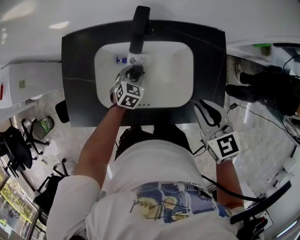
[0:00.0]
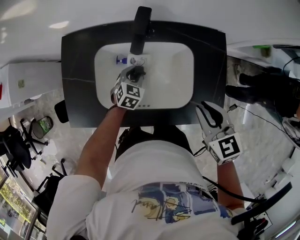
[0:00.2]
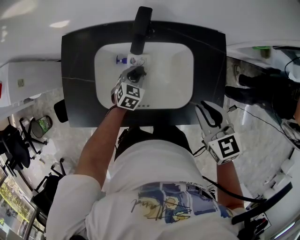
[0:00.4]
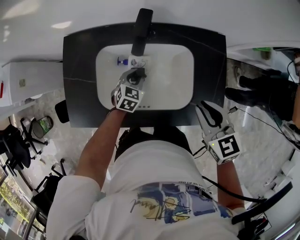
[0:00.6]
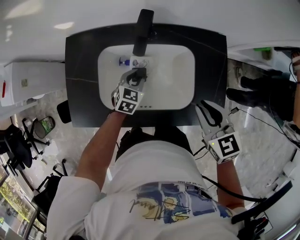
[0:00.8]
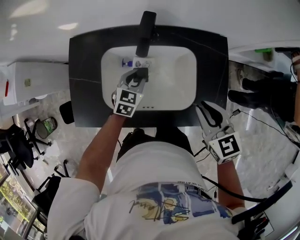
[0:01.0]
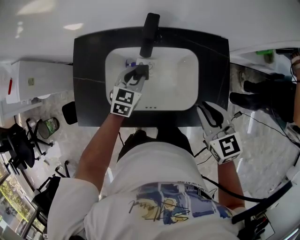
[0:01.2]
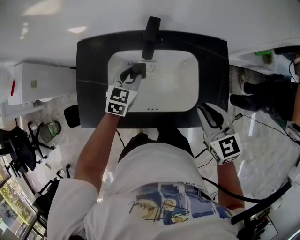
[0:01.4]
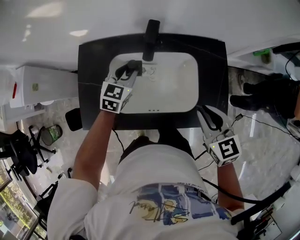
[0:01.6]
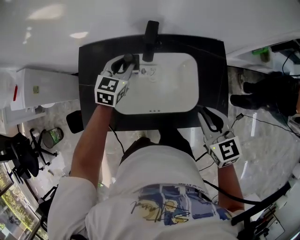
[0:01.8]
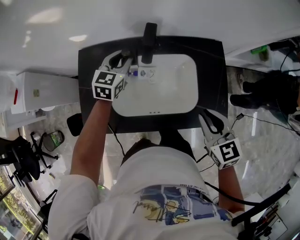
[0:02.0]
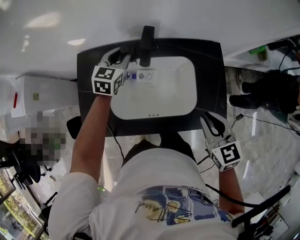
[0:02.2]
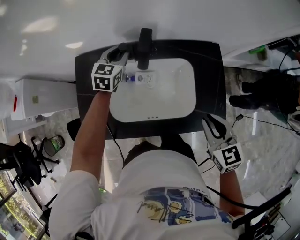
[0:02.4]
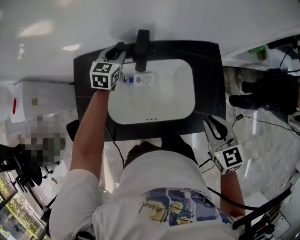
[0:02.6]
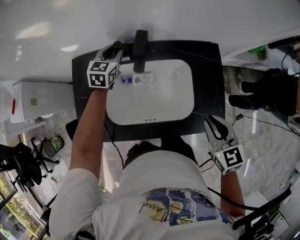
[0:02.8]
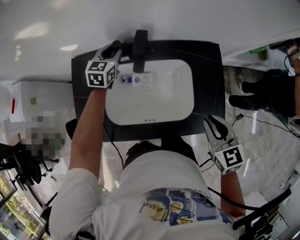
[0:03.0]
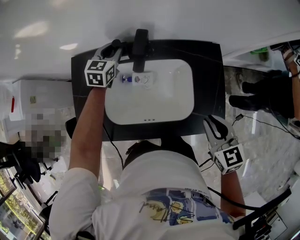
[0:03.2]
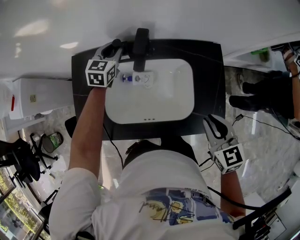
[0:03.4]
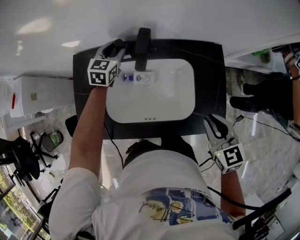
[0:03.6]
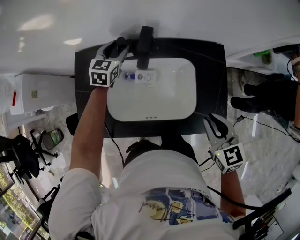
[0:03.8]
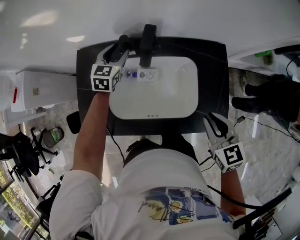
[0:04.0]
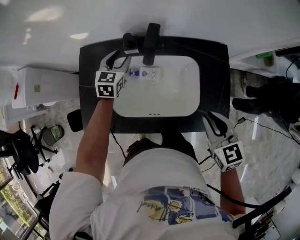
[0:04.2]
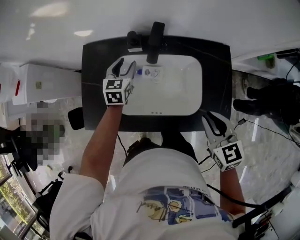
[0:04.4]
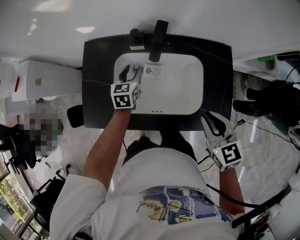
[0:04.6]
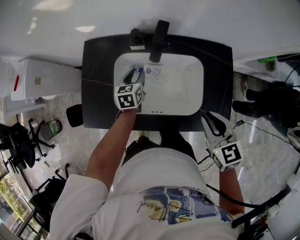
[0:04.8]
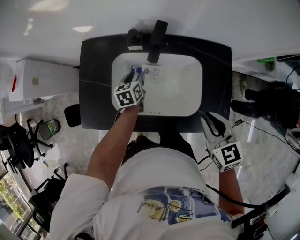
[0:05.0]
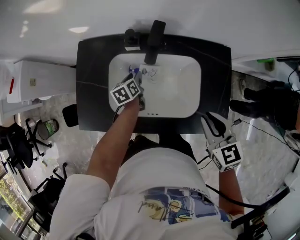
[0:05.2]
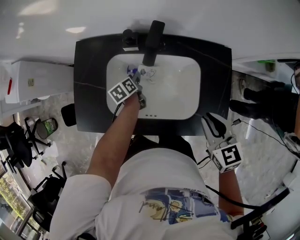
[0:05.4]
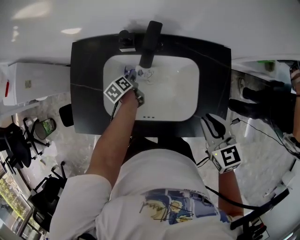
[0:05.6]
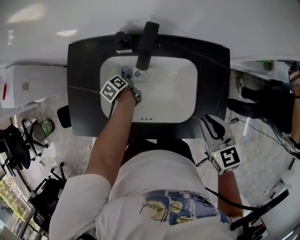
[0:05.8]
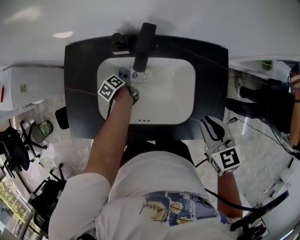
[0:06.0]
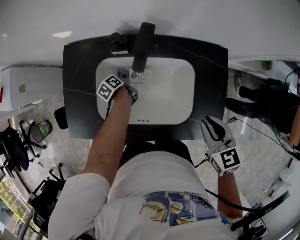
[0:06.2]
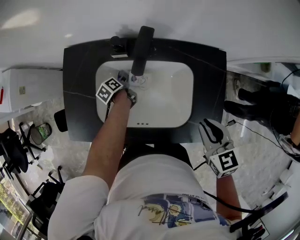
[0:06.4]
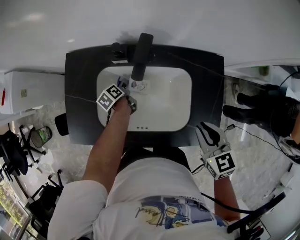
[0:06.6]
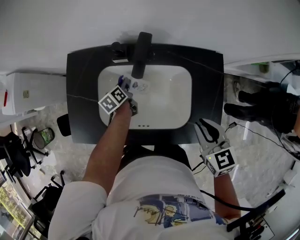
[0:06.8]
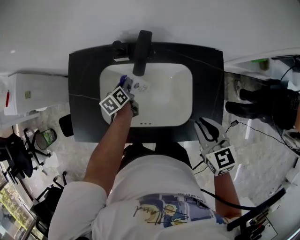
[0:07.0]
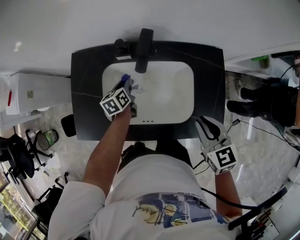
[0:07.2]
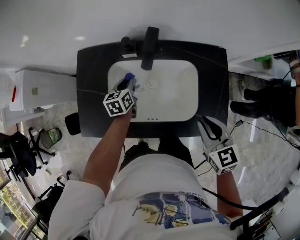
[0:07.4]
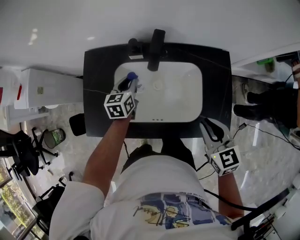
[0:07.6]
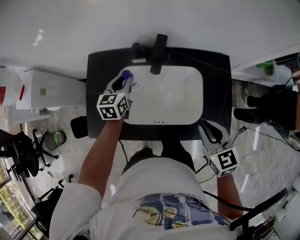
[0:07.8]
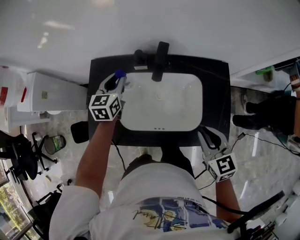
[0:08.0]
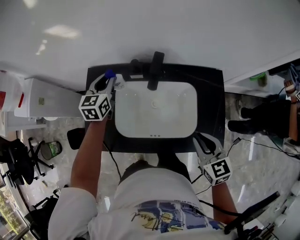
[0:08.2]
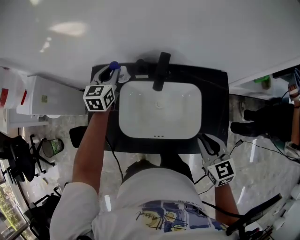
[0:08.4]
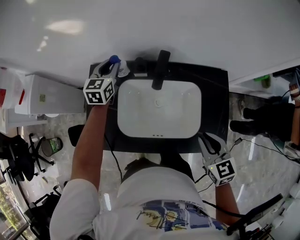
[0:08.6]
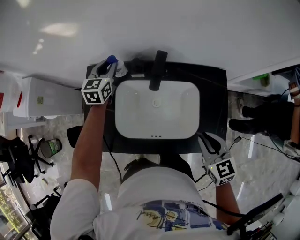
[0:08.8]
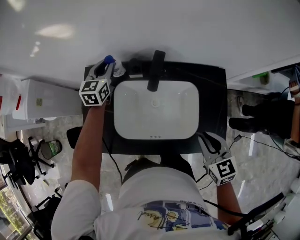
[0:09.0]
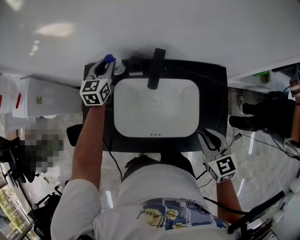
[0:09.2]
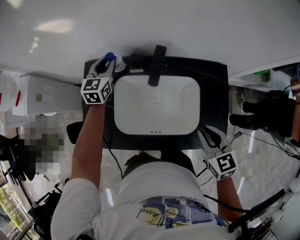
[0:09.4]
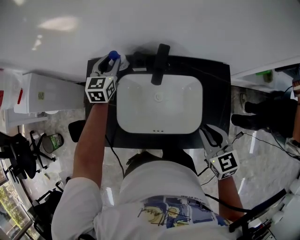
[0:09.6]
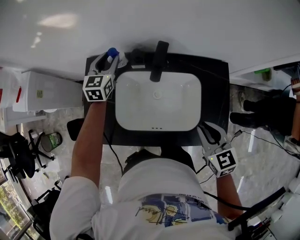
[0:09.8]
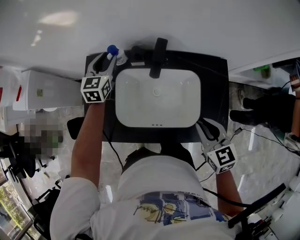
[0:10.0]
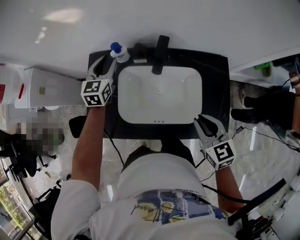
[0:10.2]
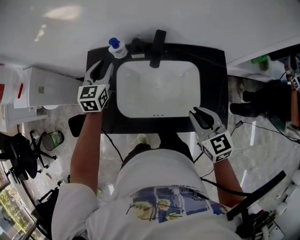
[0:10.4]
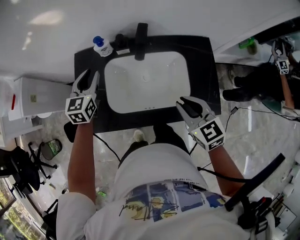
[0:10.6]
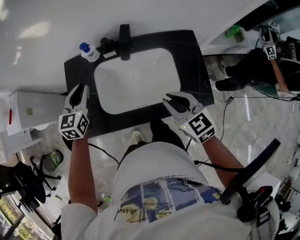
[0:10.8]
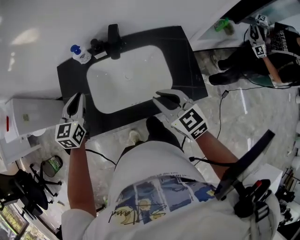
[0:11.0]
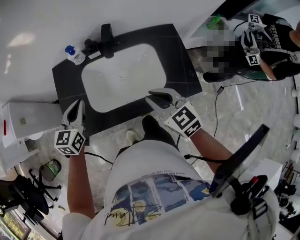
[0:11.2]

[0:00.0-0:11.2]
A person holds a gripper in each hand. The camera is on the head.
0:00.0 to 0:01.6: The left gripper goes some 15 cm upward.
0:01.6 to 0:03.2: The right gripper shifts about 5 cm to the right; the left gripper travels forward by about 15 cm.
0:03.2 to 0:04.8: The left gripper is displaced backward and downward by about 15 cm, changes its angle by approximately 30 degrees, and opens.
0:04.8 to 0:06.4: The right gripper heads to the right, covering approximately 5 cm. Meanwhile the left gripper moves downward, about 15 cm, and twists roughly 50 degrees counterclockwise, seen from behind.
0:06.4 to 0:08.0: The left gripper shifts approximately 25 cm upward, and rotates around the line of its fingers by approximately 60 degrees, clockwise from behind, while the right gripper travels to the left by roughly 5 cm.
0:08.0 to 0:09.6: The left gripper moves forward, roughly 10 cm.
0:09.6 to 0:11.2: The right gripper heads to the left and backward, covering approximately 10 cm, while the left gripper travels backward by roughly 25 cm, and closes up.

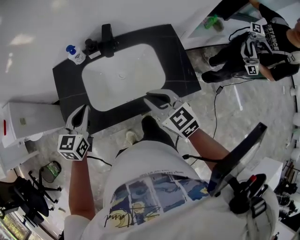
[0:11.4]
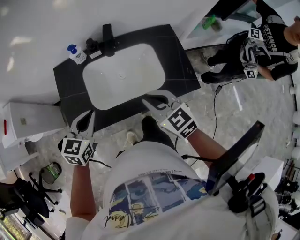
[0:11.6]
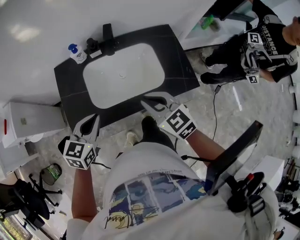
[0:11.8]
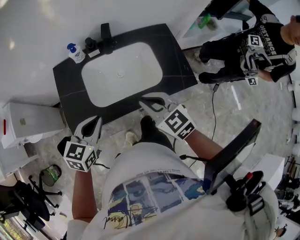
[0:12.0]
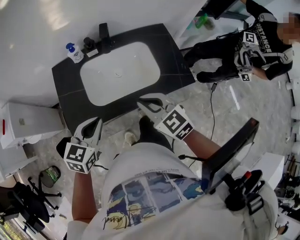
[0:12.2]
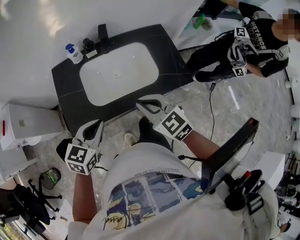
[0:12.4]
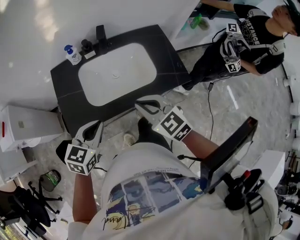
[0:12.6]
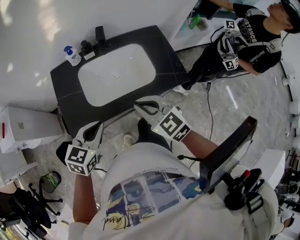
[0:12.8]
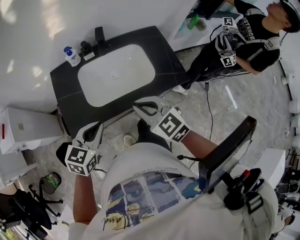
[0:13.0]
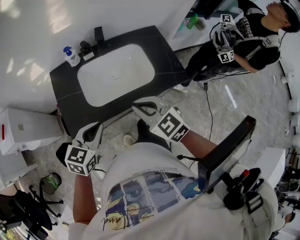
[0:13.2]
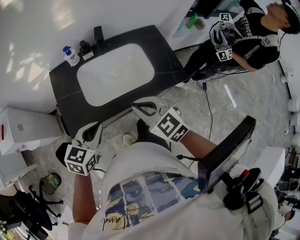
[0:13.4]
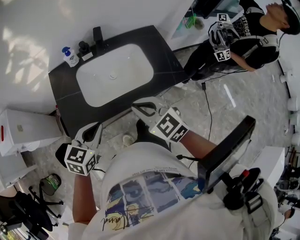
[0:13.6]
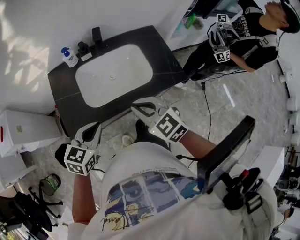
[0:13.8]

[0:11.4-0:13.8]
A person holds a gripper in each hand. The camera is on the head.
0:11.4 to 0:12.6: The right gripper travels backward by about 5 cm. Meanwhile the left gripper heads backward, covering approximately 10 cm.
0:12.6 to 0:13.8: The grippers stay close to where they were, moving slightly.

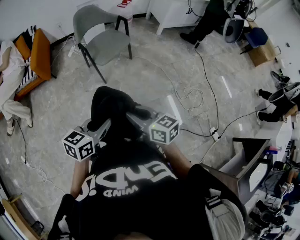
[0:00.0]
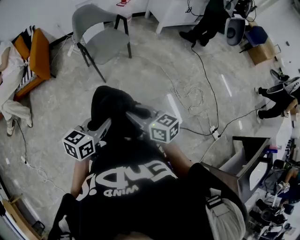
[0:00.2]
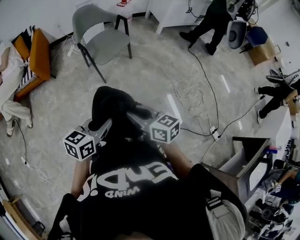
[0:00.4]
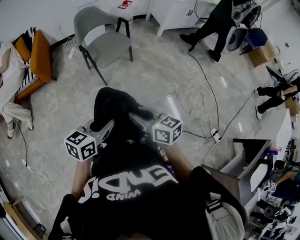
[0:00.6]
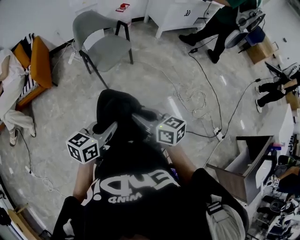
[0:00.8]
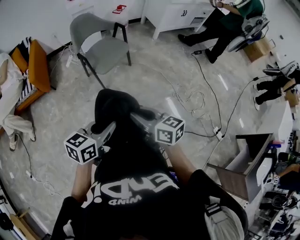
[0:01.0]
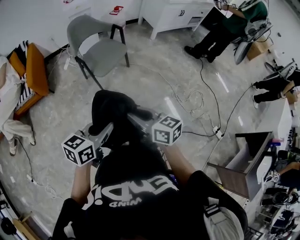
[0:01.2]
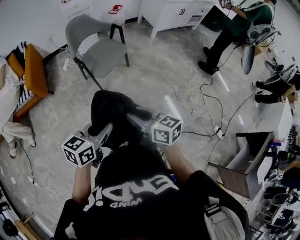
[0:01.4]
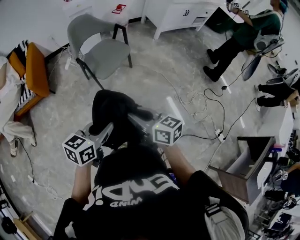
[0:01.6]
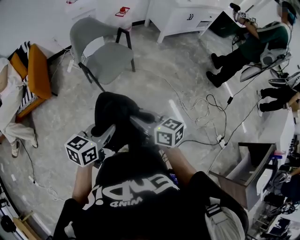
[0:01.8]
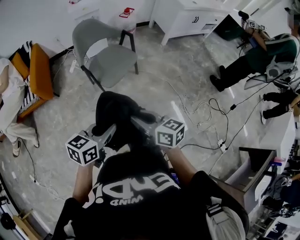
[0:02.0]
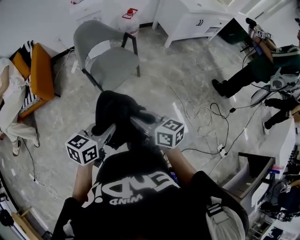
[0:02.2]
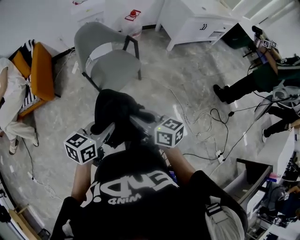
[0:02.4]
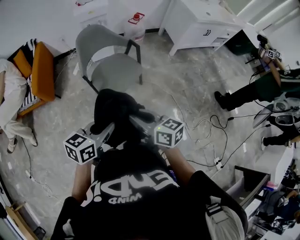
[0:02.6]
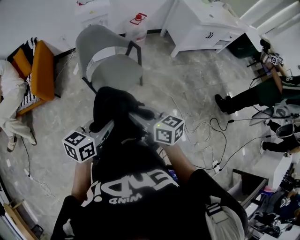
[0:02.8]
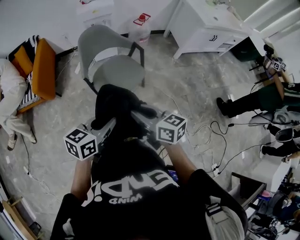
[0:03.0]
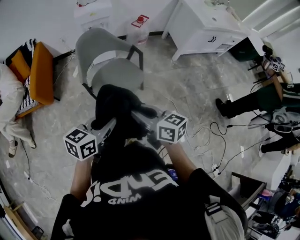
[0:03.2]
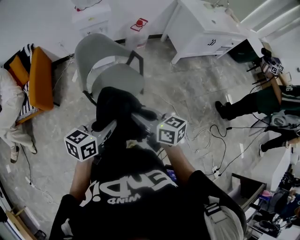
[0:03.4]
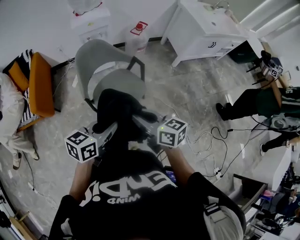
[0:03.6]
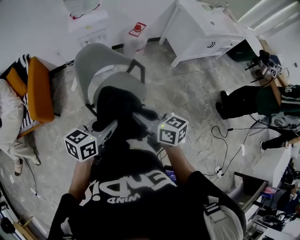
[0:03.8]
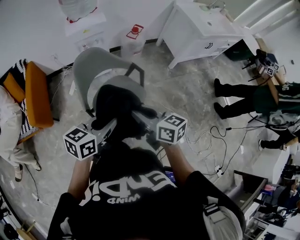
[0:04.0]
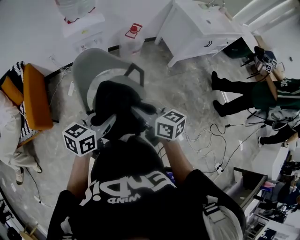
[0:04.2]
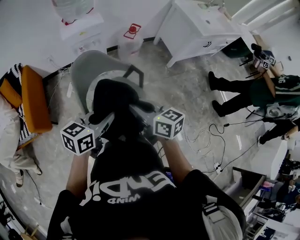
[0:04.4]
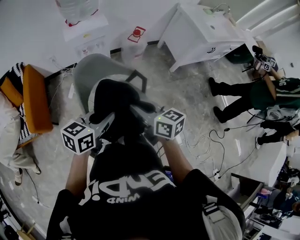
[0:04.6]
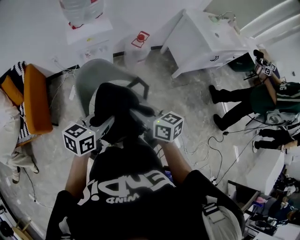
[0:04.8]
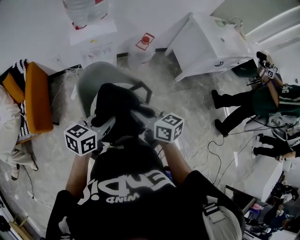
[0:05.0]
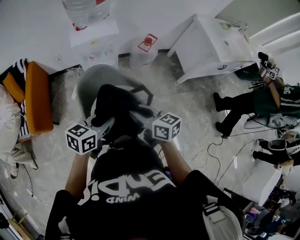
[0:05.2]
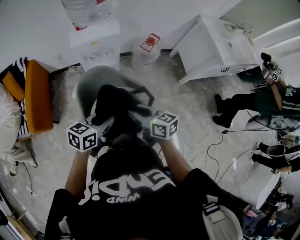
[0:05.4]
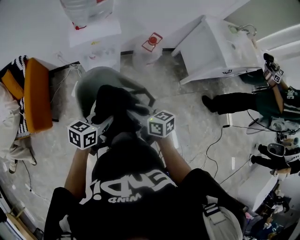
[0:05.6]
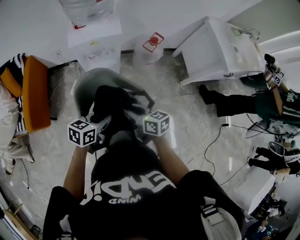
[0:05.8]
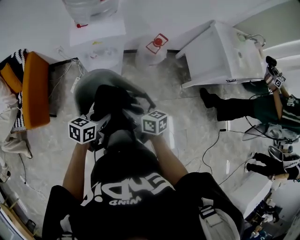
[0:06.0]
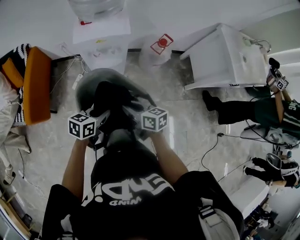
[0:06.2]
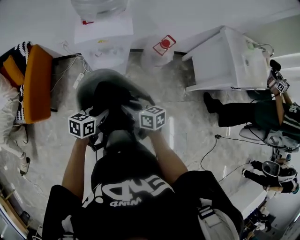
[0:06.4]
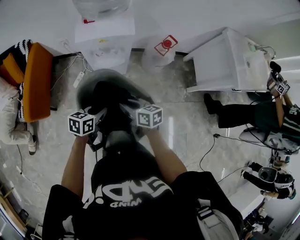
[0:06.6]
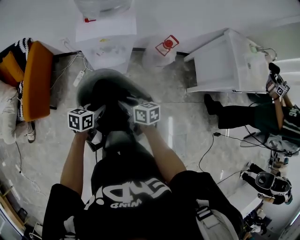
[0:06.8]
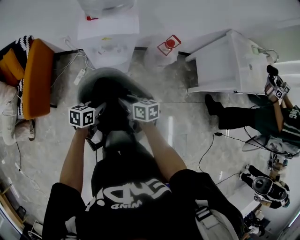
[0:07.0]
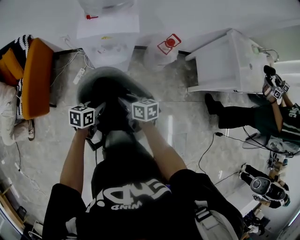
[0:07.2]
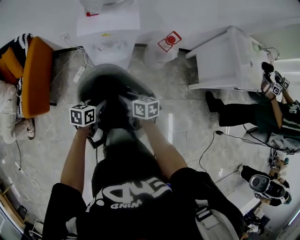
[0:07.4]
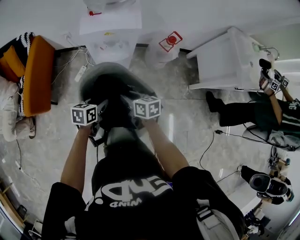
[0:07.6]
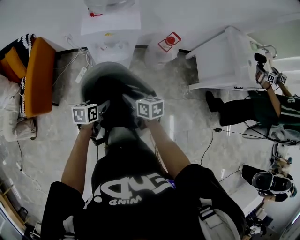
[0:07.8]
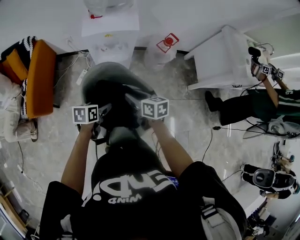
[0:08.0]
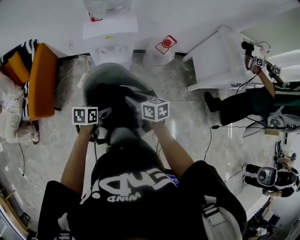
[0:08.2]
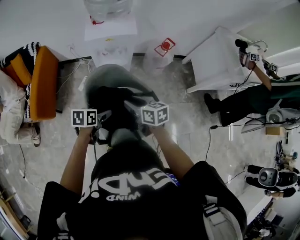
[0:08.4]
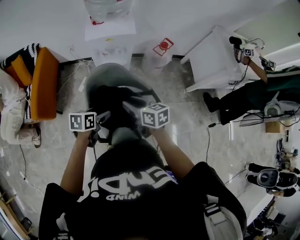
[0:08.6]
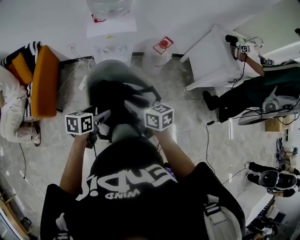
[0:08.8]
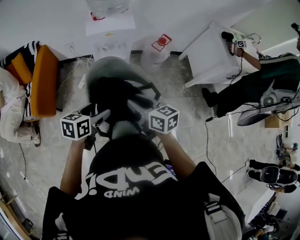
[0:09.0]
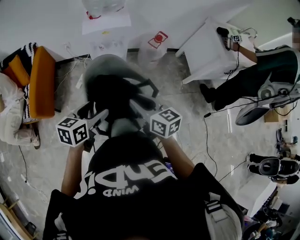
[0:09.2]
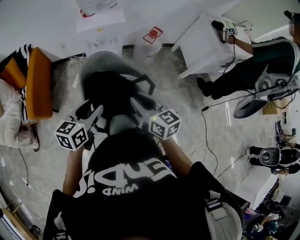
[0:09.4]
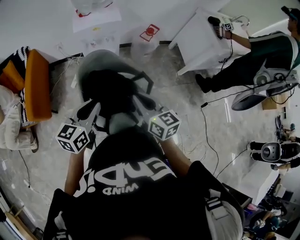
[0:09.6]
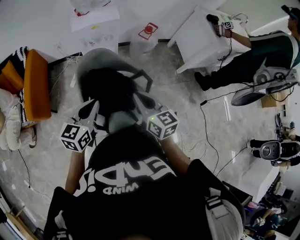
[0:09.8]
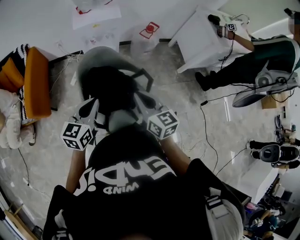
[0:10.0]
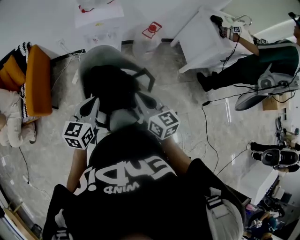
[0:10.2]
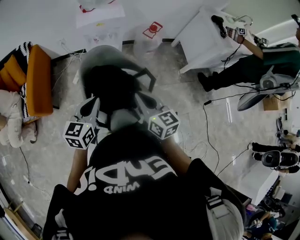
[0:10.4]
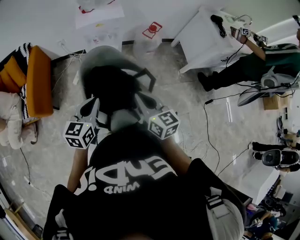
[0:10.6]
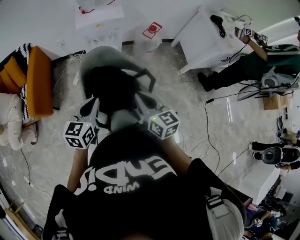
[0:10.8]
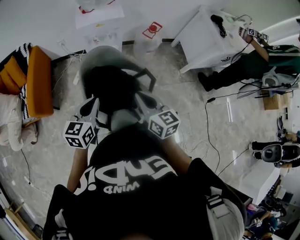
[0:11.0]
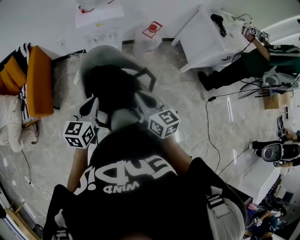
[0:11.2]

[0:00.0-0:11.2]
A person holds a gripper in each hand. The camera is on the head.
0:00.0 to 0:01.6: The two grippers go roughly 15 cm forward.
0:01.6 to 0:03.2: The grippers both shift forward by roughly 35 cm.
0:03.2 to 0:04.8: The grippers both shift forward by approximately 30 cm.
0:04.8 to 0:06.4: Both grippers travel together forward and downward, roughly 30 cm. The right gripper changes its angle by roughly 20 degrees. The left gripper changes its angle by roughly 20 degrees.
0:06.4 to 0:08.0: The left gripper shifts some 5 cm to the left, and opens up.
0:08.0 to 0:09.6: The right gripper shifts roughly 25 cm backward and upward, swivels about 30 degrees, and closes; the left gripper heads upward and backward, covering about 25 cm, changes its angle by roughly 40 degrees, and closes up.
0:09.6 to 0:11.2: The grippers move only a little.
